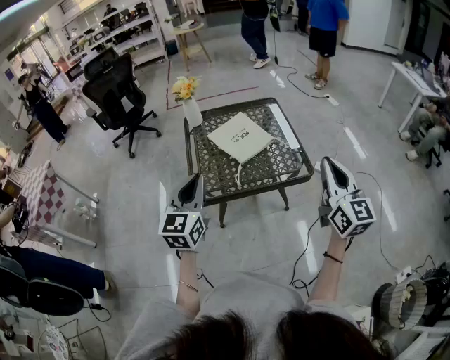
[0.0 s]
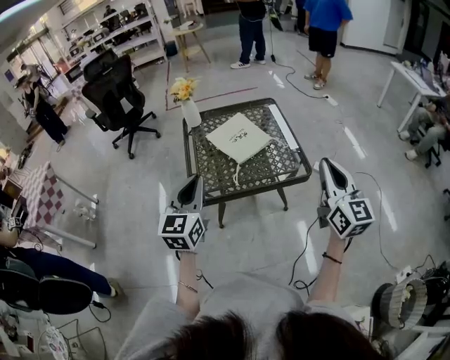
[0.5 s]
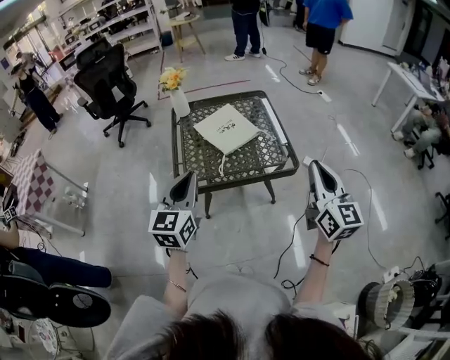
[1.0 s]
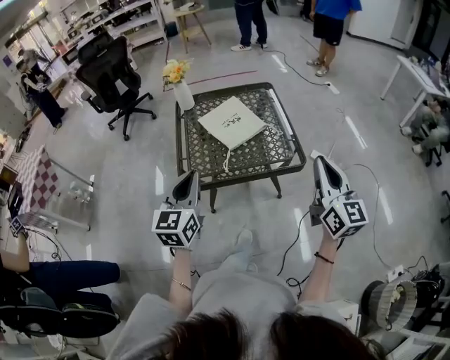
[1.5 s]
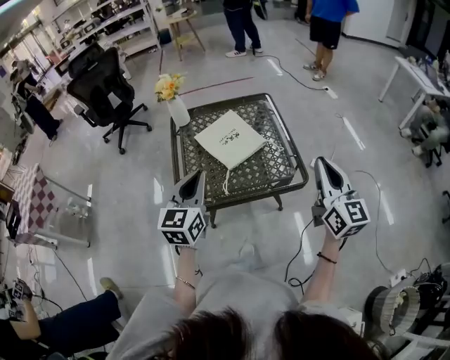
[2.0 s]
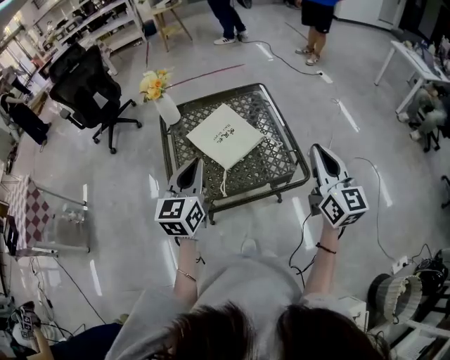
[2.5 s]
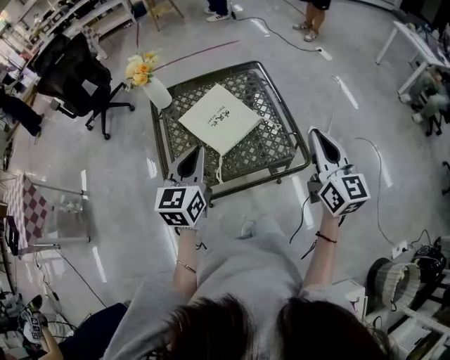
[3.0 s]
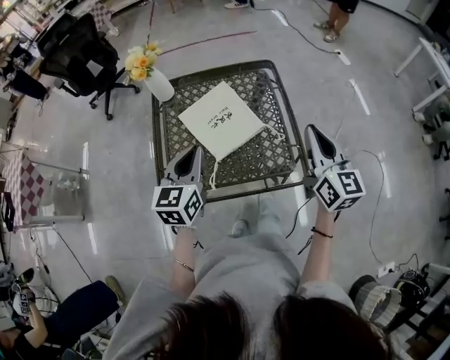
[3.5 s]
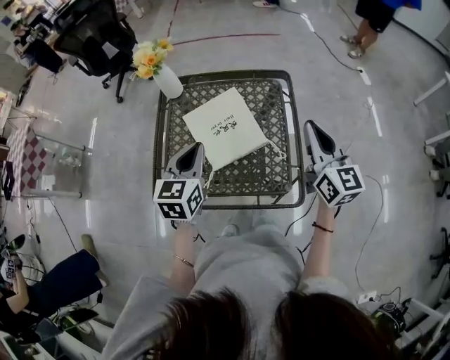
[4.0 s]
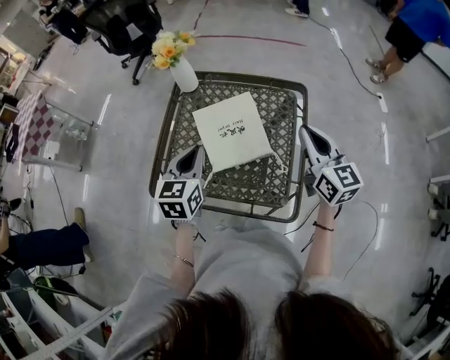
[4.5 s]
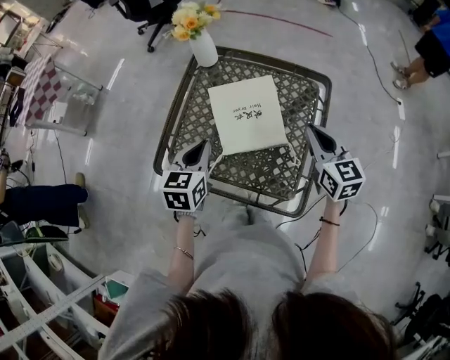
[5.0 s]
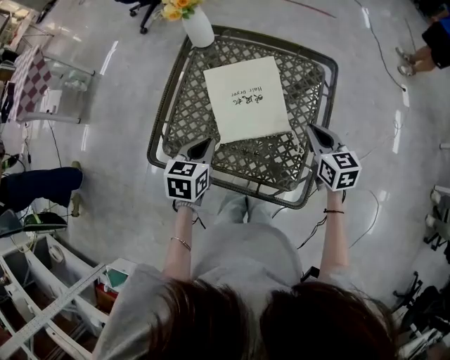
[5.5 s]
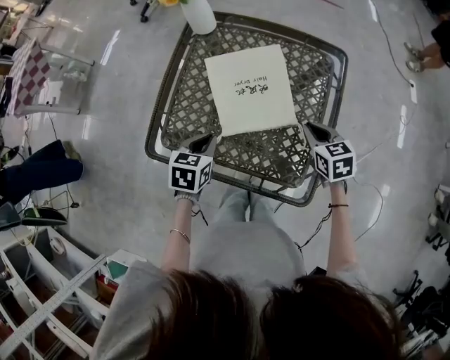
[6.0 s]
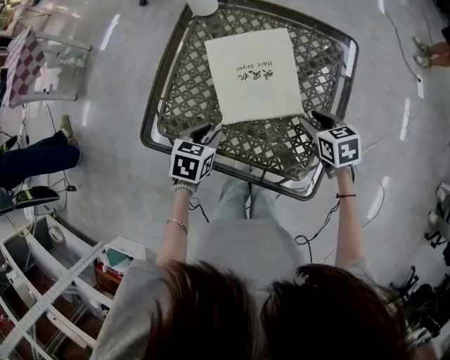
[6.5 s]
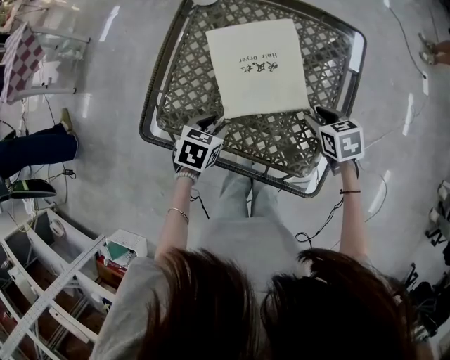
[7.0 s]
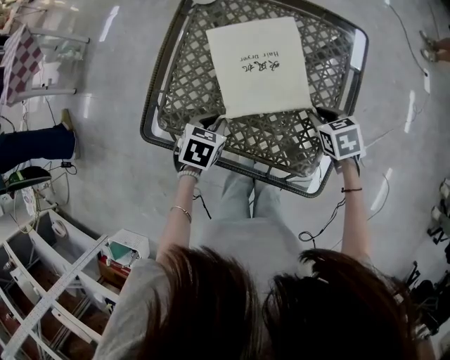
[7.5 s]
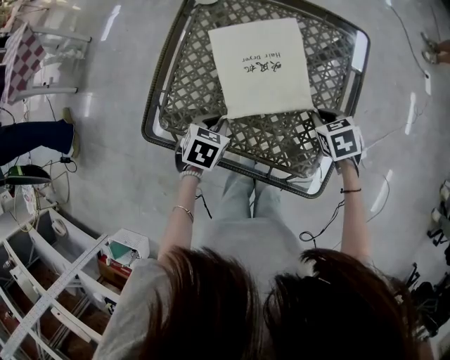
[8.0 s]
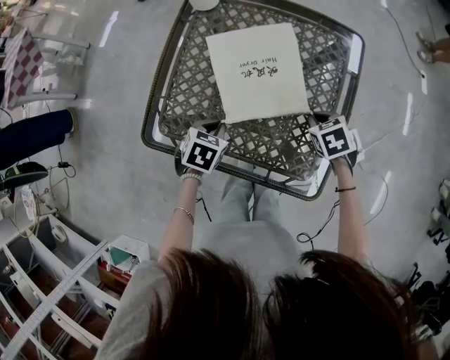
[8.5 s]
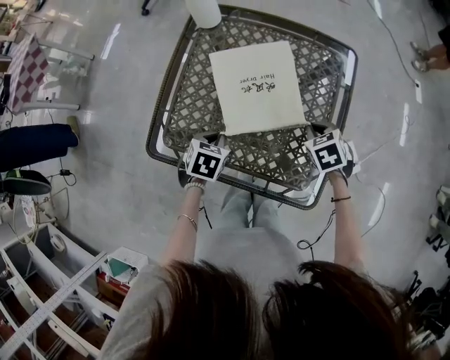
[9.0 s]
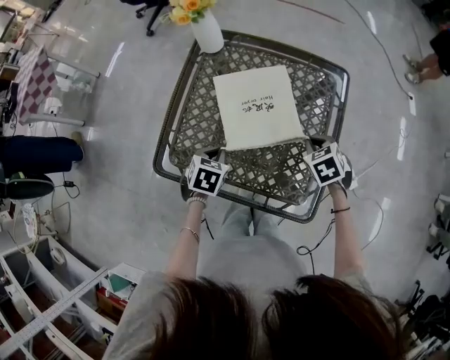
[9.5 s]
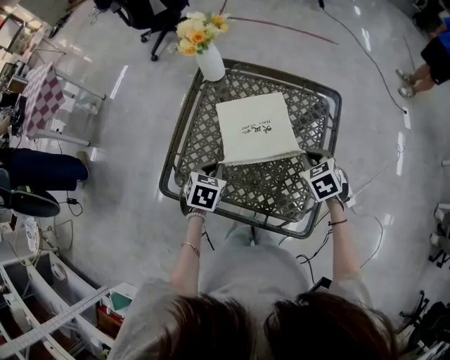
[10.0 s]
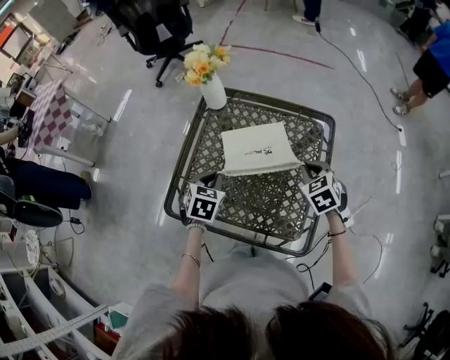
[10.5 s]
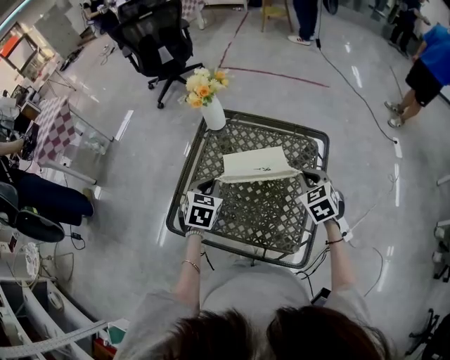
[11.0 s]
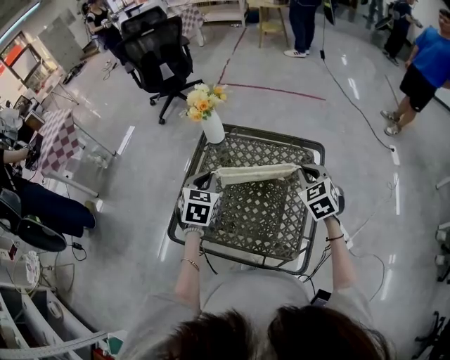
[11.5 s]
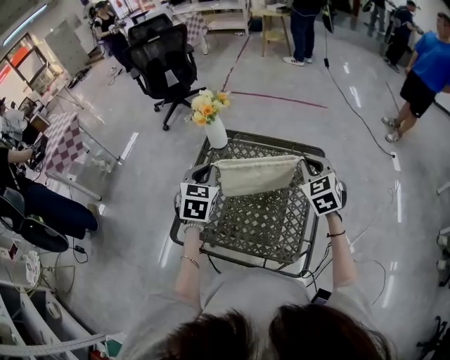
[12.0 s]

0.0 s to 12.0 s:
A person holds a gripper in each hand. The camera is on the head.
0.0 to 2.0 s: The right gripper travels forward by about 10 cm. The left gripper heads forward and to the right, covering roughly 10 cm.
2.0 to 4.0 s: Both grippers move forward, approximately 25 cm.
4.0 to 6.0 s: The grippers both shift downward by approximately 25 cm. The right gripper points its fingers some 40 degrees further downward, while the left gripper changes its angle by about 30 degrees.
6.0 to 8.0 s: The grippers both shift downward by roughly 5 cm. The right gripper changes its angle by roughly 20 degrees, and opens, then closes once more; the left gripper opens and closes again.
8.0 to 10.0 s: Both grippers travel together upward, approximately 10 cm.
10.0 to 12.0 s: The left gripper shifts about 25 cm upward and forward, and rotates approximately 30 degrees; the right gripper shifts approximately 20 cm upward, and rotates roughly 30 degrees.

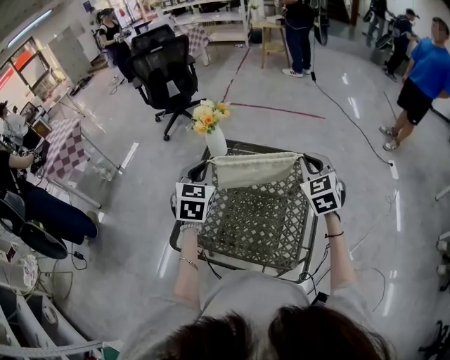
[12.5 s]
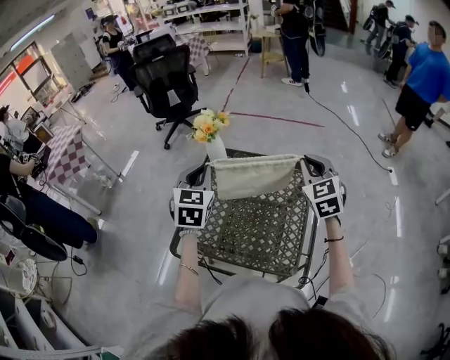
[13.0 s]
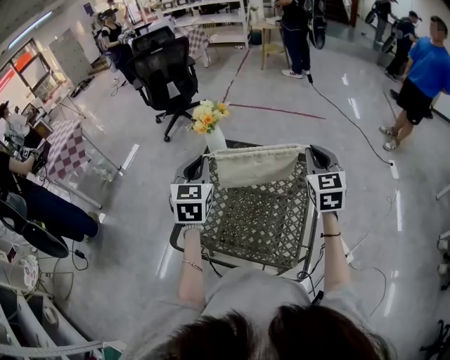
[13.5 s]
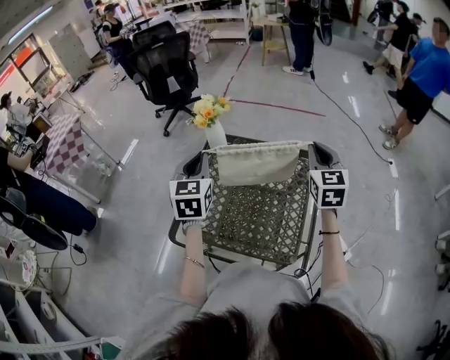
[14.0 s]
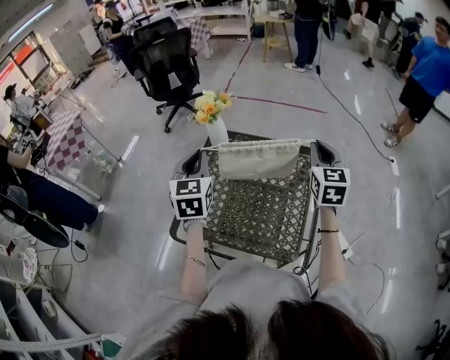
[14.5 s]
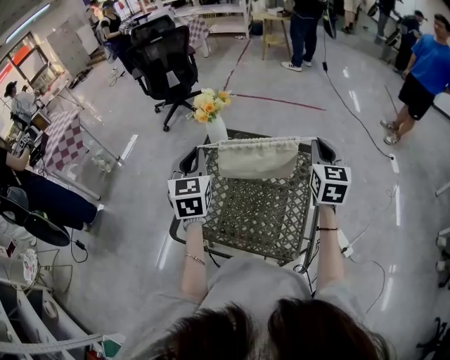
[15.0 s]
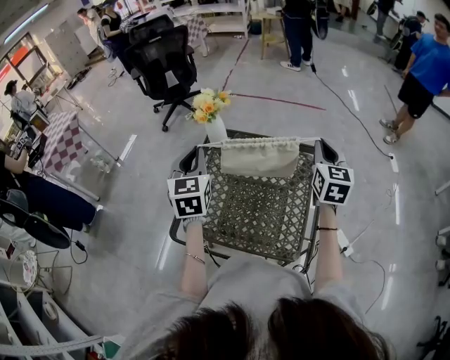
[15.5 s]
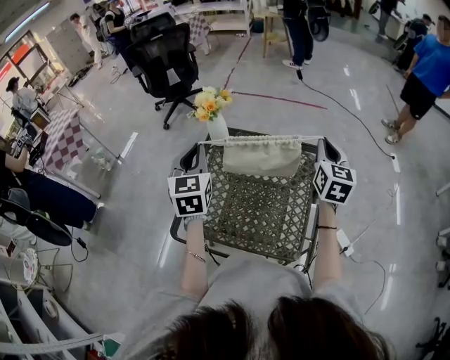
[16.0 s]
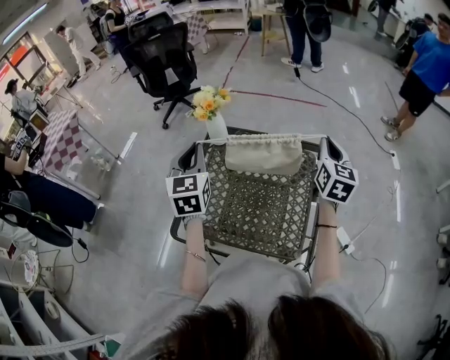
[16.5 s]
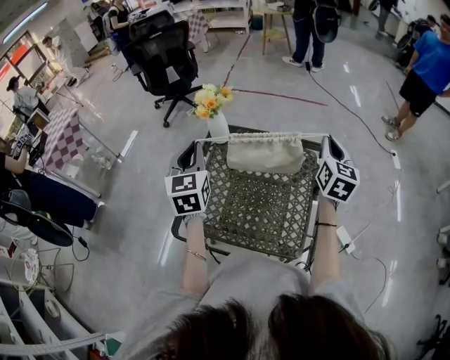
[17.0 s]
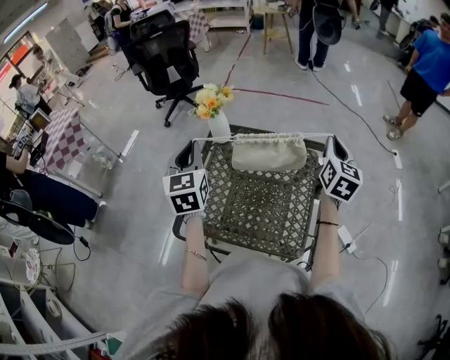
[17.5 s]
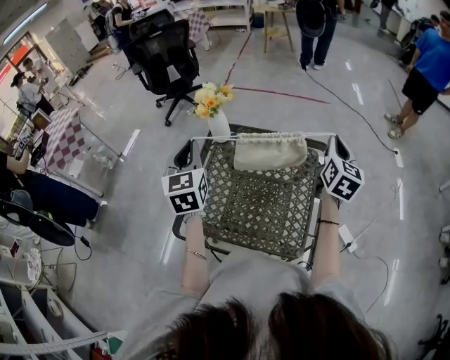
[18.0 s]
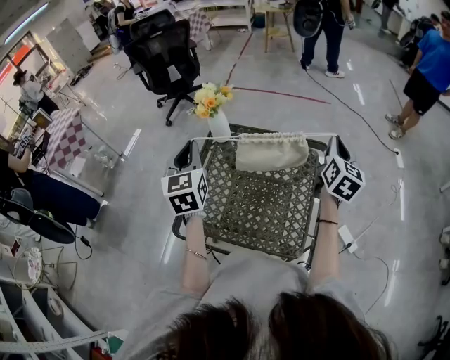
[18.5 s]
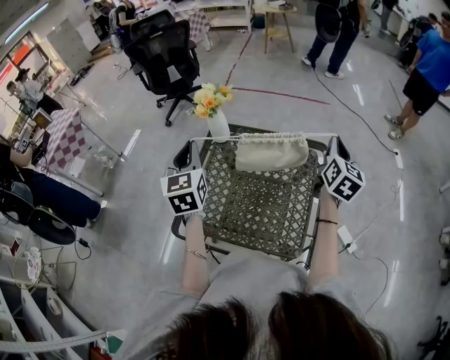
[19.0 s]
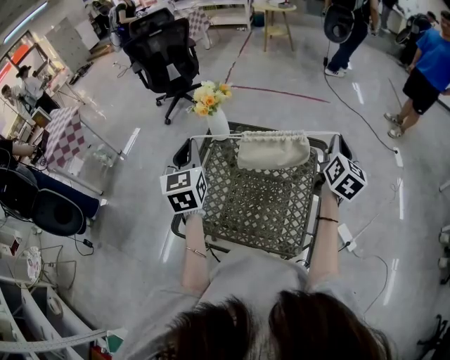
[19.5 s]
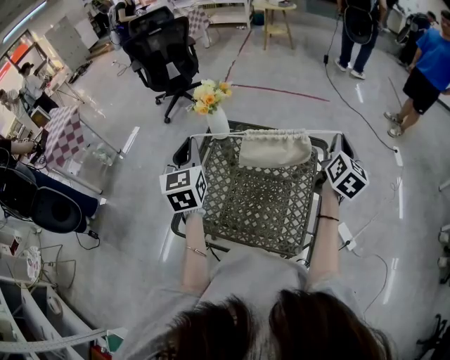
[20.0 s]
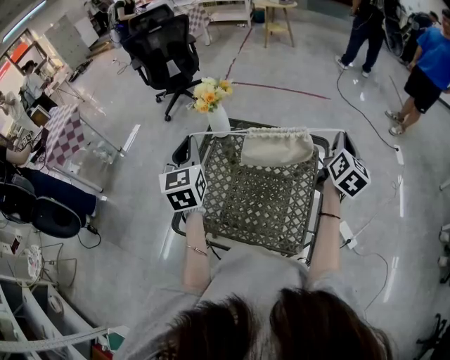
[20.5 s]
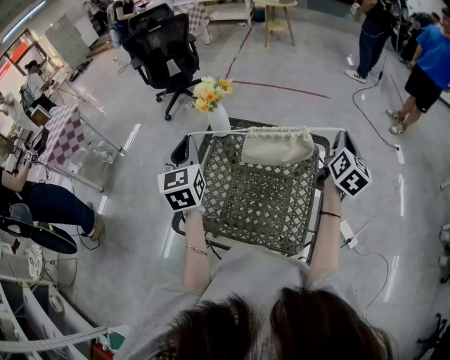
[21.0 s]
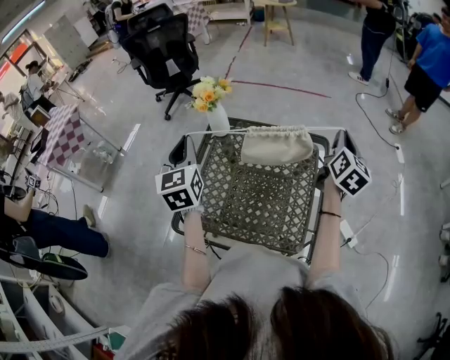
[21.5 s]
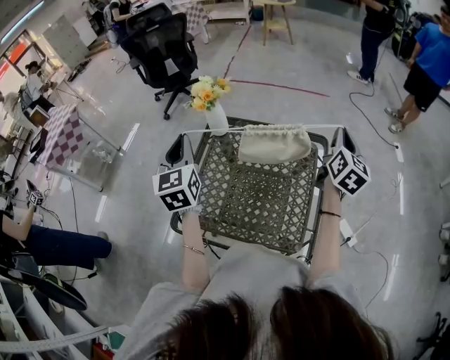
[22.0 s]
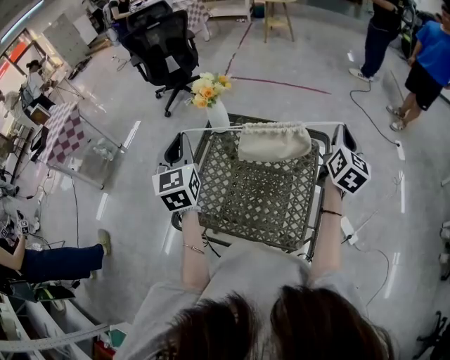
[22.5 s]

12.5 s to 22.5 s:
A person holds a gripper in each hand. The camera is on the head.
12.5 to 14.5 s: The right gripper rotates some 20 degrees.
14.5 to 16.5 s: The grippers move only a little.
16.5 to 20.5 s: The grippers move only a little.
20.5 to 22.5 s: The grippers make only small movements.

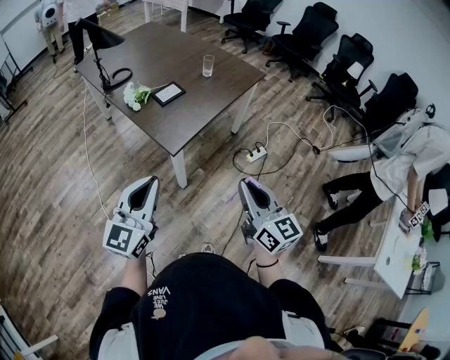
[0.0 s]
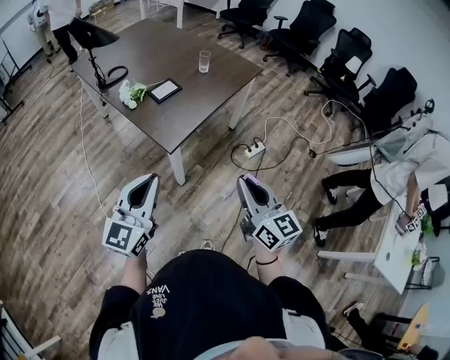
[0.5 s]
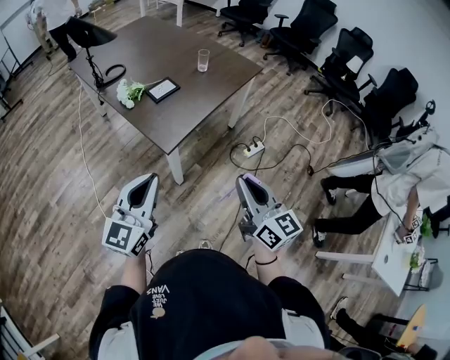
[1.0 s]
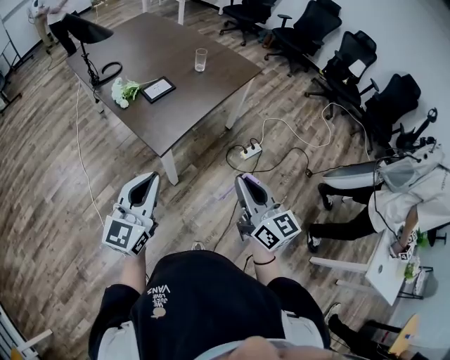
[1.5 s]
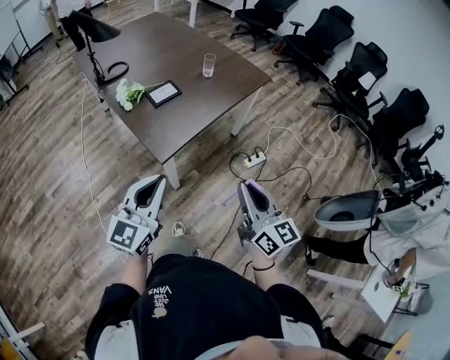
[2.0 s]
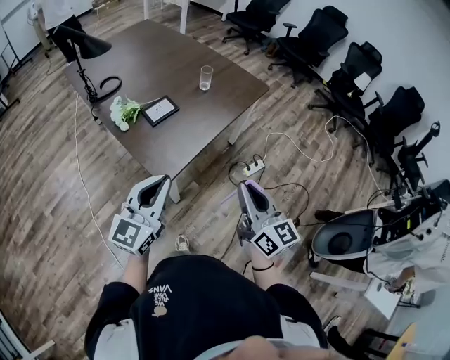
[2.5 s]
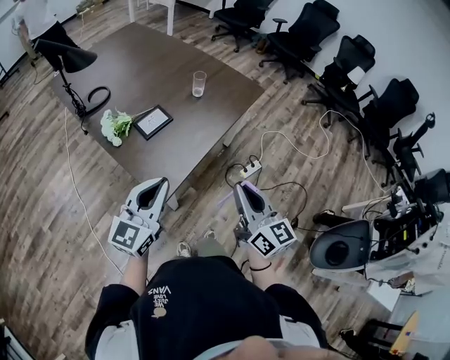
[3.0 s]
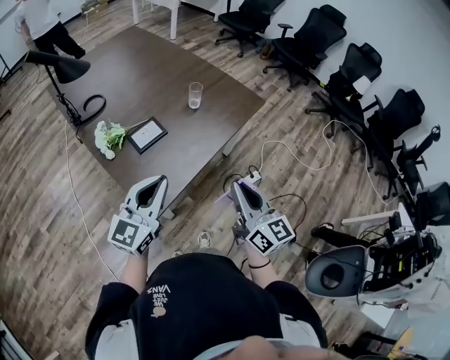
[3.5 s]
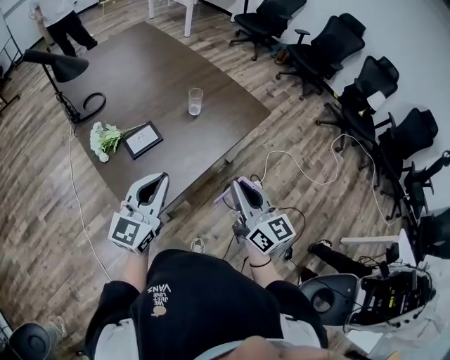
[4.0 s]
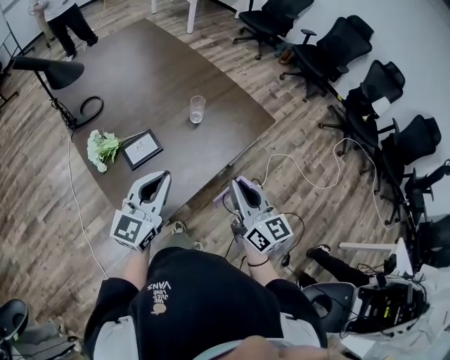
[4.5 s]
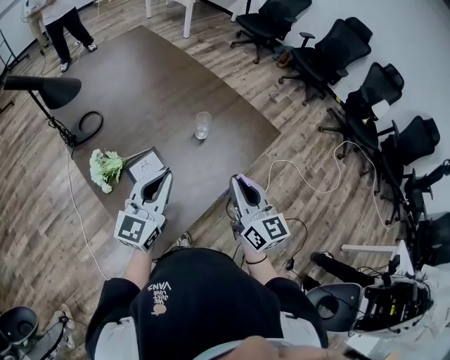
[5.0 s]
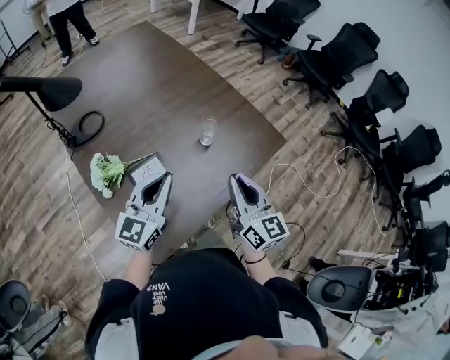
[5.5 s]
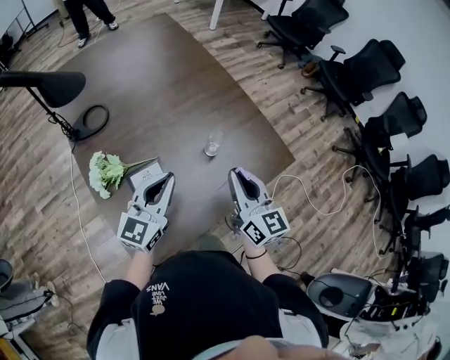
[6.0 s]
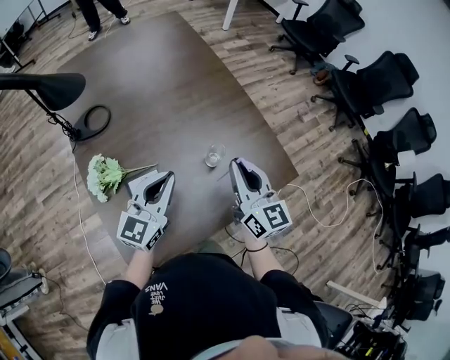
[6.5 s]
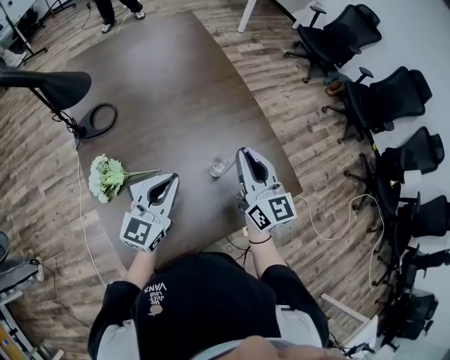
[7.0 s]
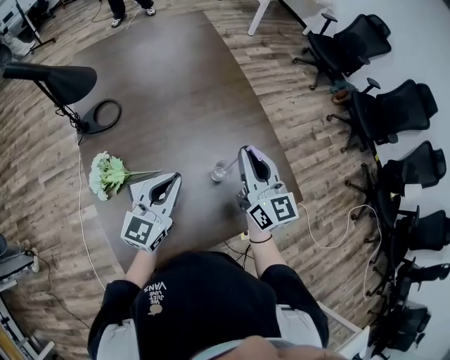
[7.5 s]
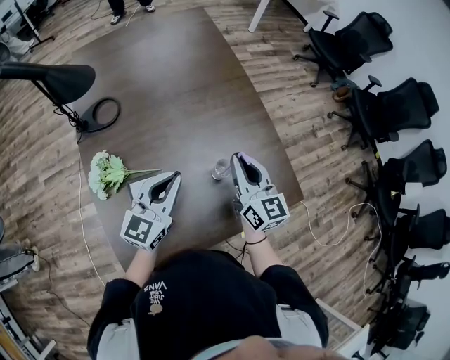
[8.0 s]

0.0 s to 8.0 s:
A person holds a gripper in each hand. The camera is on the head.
0.0 to 2.0 s: The two grippers go roughly 10 cm forward and to the right.
2.0 to 4.0 s: Both grippers travel together forward, some 30 cm.
4.0 to 6.0 s: Both grippers travel together forward, approximately 25 cm.
6.0 to 8.0 s: The left gripper is displaced forward by about 10 cm. Meanwhile the right gripper heads forward, covering about 15 cm.
